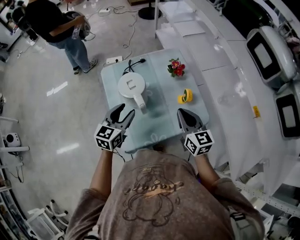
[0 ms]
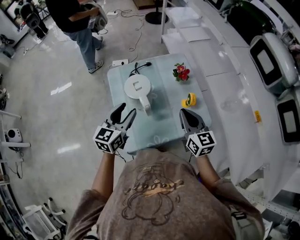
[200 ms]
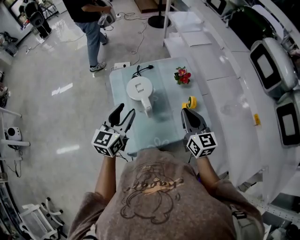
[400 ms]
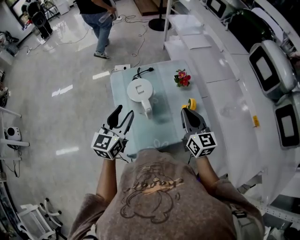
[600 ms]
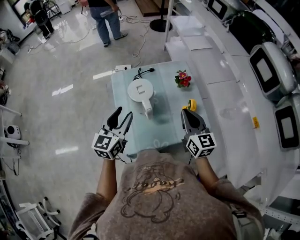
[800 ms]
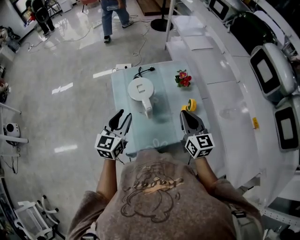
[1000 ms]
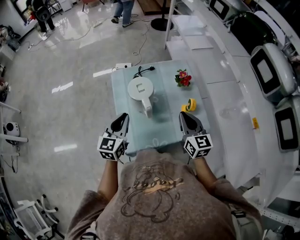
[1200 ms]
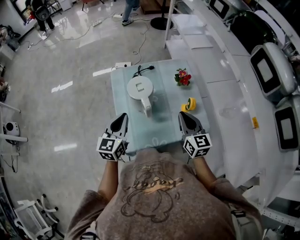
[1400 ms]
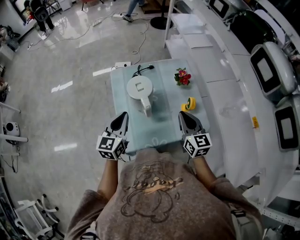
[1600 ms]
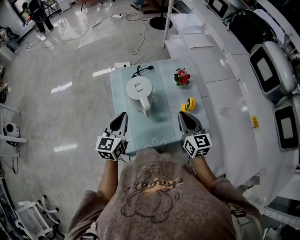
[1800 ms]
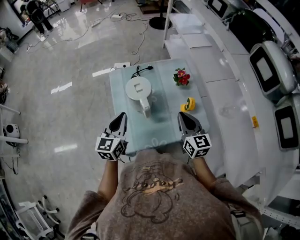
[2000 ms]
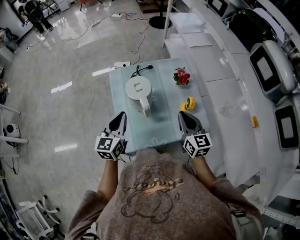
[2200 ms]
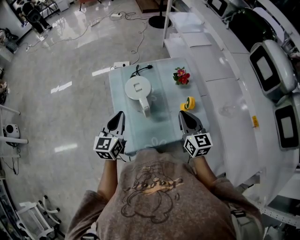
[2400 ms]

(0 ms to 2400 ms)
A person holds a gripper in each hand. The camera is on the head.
0 ms - 1200 ms: The left gripper reaches about 10 cm upward, then returns, and closes up.
1200 ms - 2400 ms: The grippers stay close to where they were, moving slightly.

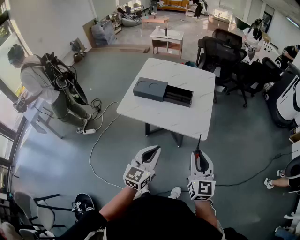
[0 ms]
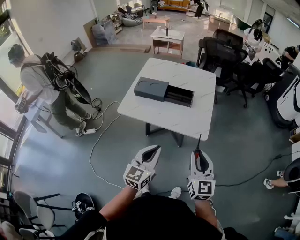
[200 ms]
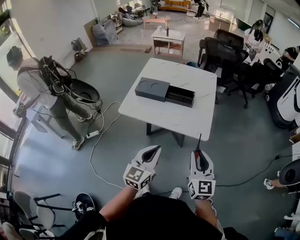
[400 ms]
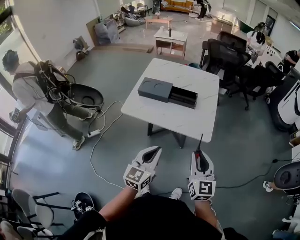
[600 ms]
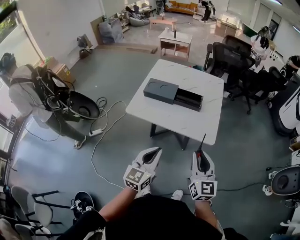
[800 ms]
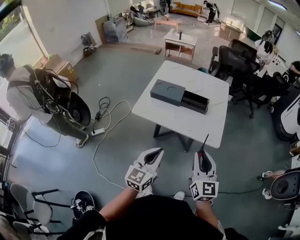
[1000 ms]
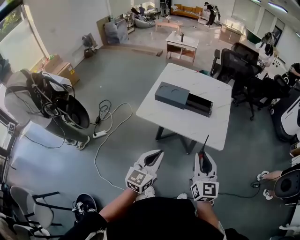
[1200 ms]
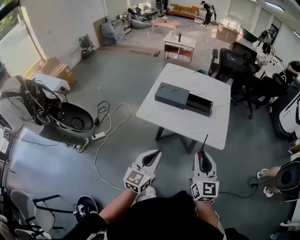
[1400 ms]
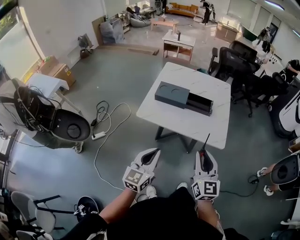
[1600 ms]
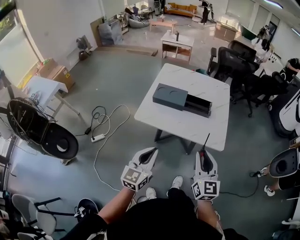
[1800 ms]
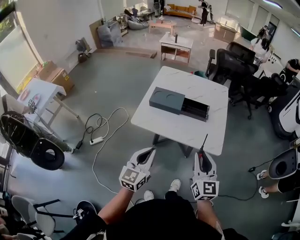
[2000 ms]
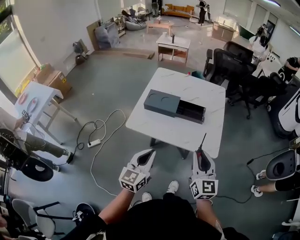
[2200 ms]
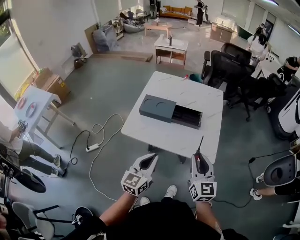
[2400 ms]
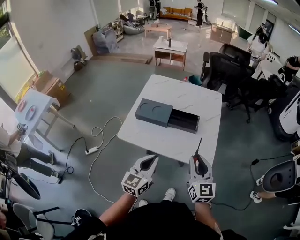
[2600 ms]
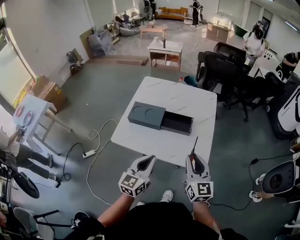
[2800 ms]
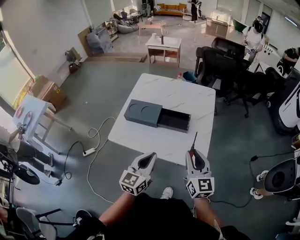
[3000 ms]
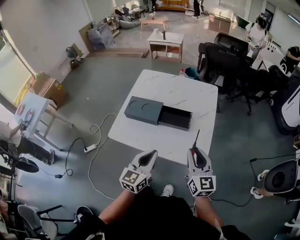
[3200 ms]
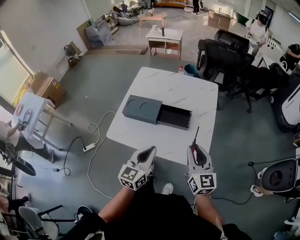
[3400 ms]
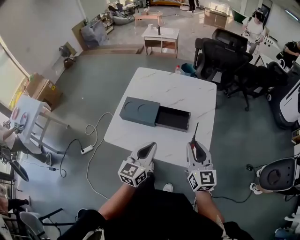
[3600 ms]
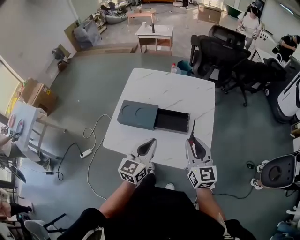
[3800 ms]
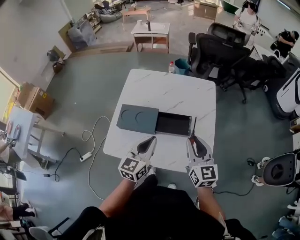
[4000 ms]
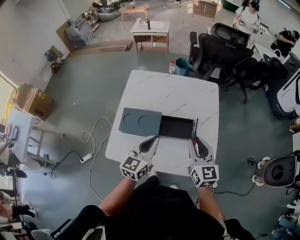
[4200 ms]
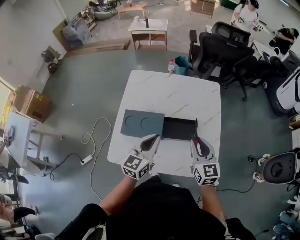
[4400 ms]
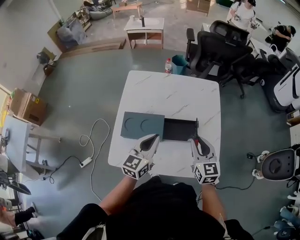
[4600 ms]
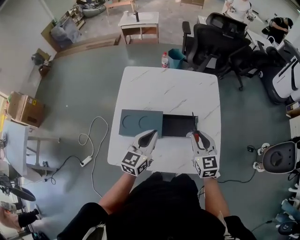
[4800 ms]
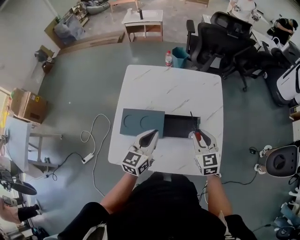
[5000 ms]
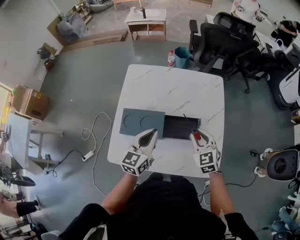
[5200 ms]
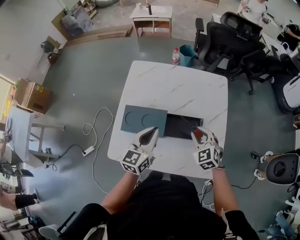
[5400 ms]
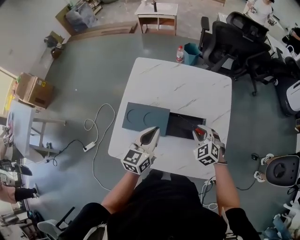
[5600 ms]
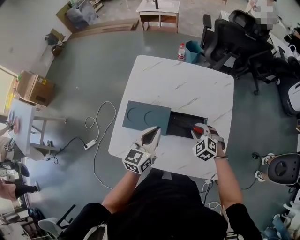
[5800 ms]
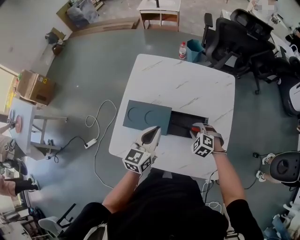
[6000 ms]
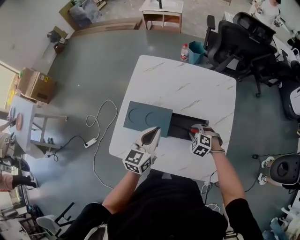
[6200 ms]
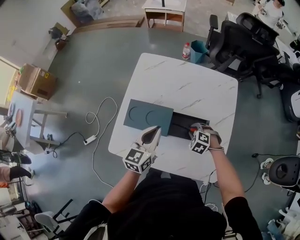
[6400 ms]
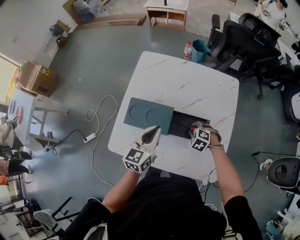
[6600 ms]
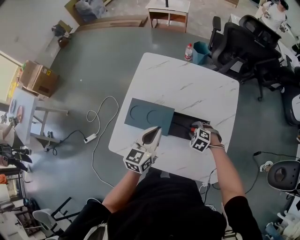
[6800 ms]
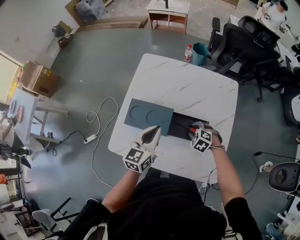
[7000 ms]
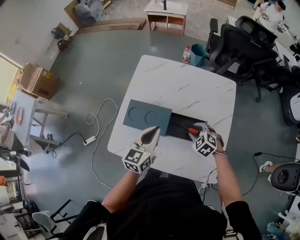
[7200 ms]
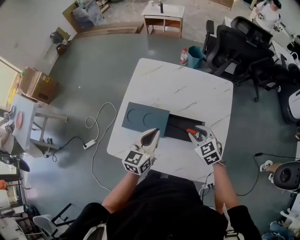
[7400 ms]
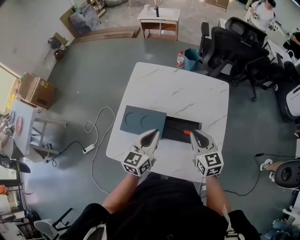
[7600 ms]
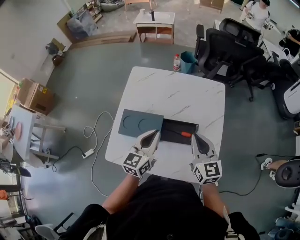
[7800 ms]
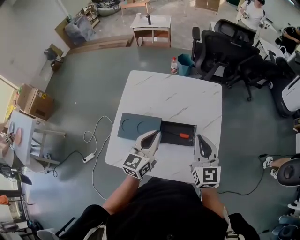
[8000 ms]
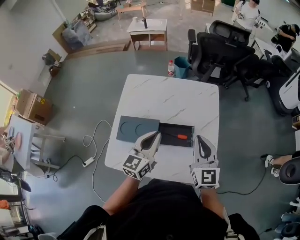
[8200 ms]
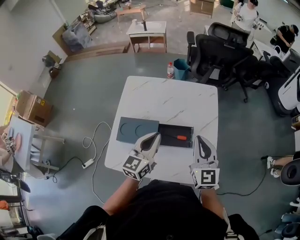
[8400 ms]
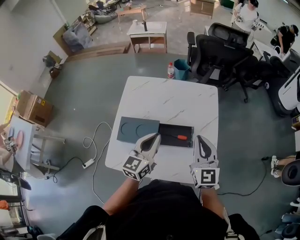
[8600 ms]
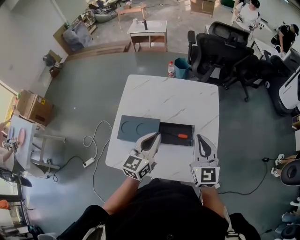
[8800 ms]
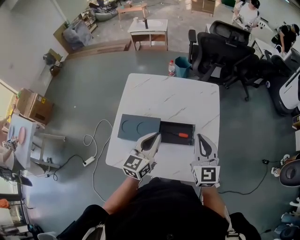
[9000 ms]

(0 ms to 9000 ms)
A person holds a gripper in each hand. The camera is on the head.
0 ms - 1600 ms: The grippers both shift to the left by roughly 15 cm.
1600 ms - 3000 ms: Both grippers travel together forward and to the right, about 25 cm.
3000 ms - 4400 ms: Both grippers move forward, about 20 cm.
4400 ms - 6000 ms: The right gripper is displaced downward by some 20 cm, and angles its fingers downward, by approximately 40 degrees, while the left gripper ends up roughly 5 cm from where it was.
6000 ms - 7600 ms: The right gripper travels upward by approximately 15 cm, and angles its fingers upward, by approximately 40 degrees.
7600 ms - 9000 ms: The left gripper ends up about 5 cm from where it was, while the right gripper travels upward by some 10 cm, and swivels roughly 30 degrees.

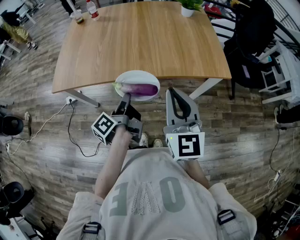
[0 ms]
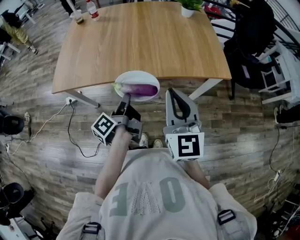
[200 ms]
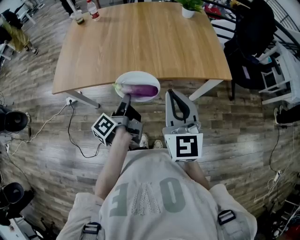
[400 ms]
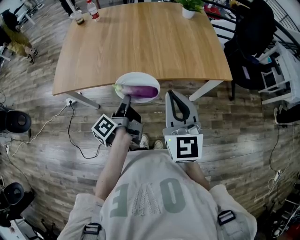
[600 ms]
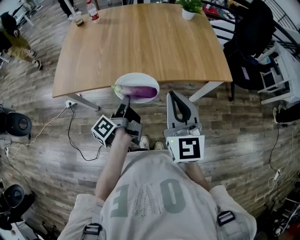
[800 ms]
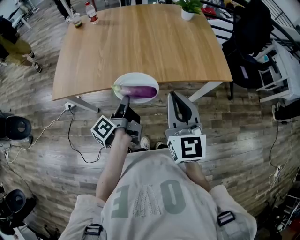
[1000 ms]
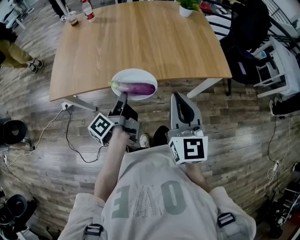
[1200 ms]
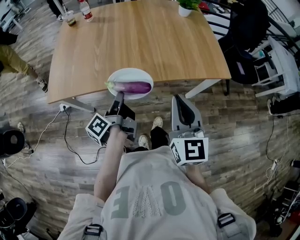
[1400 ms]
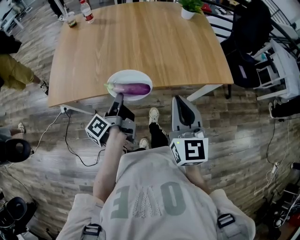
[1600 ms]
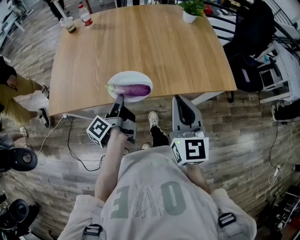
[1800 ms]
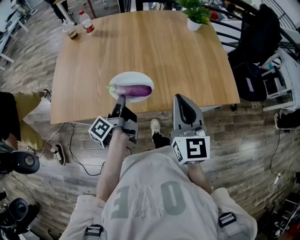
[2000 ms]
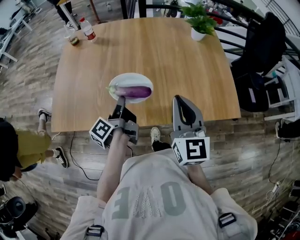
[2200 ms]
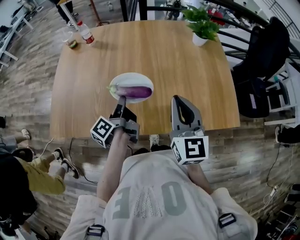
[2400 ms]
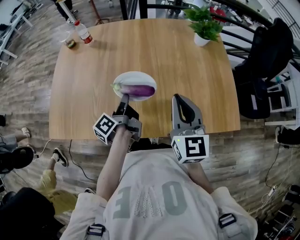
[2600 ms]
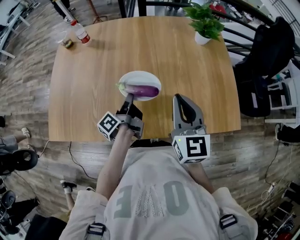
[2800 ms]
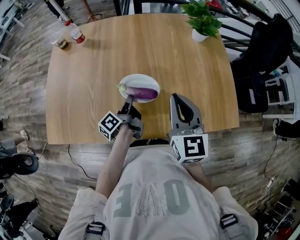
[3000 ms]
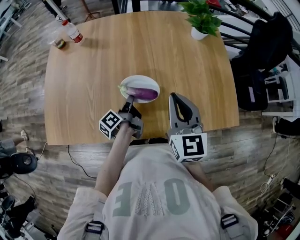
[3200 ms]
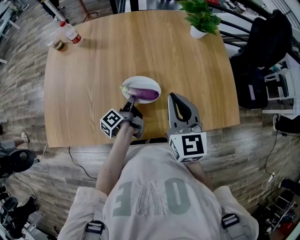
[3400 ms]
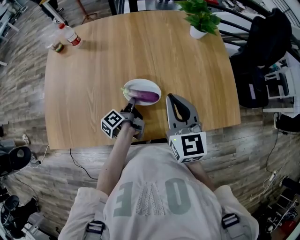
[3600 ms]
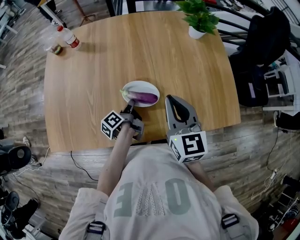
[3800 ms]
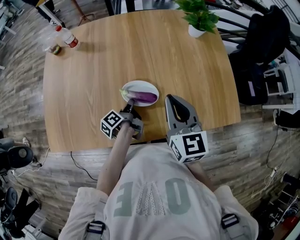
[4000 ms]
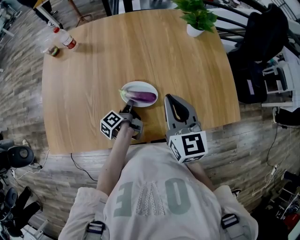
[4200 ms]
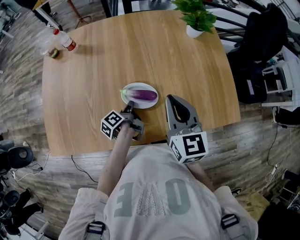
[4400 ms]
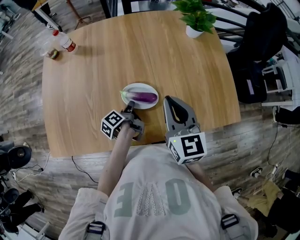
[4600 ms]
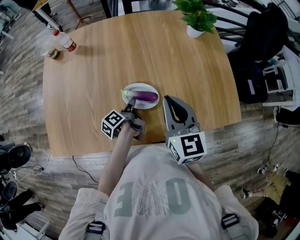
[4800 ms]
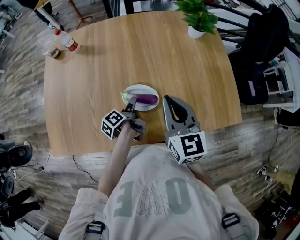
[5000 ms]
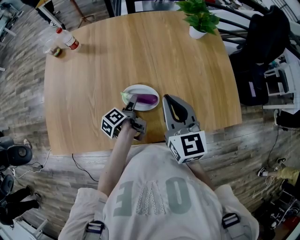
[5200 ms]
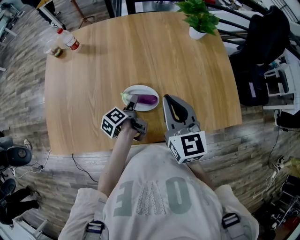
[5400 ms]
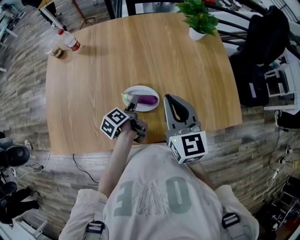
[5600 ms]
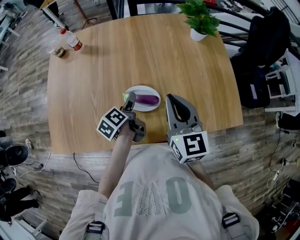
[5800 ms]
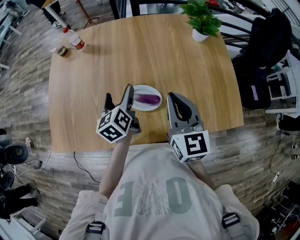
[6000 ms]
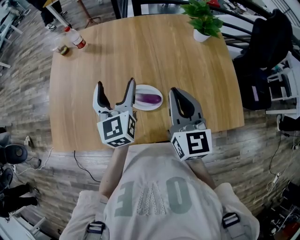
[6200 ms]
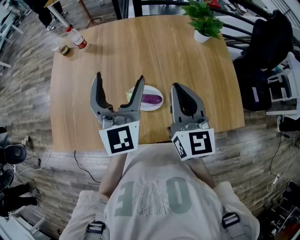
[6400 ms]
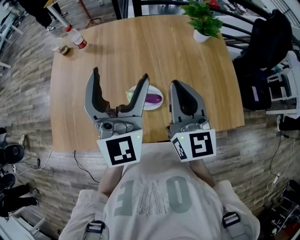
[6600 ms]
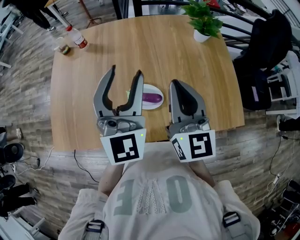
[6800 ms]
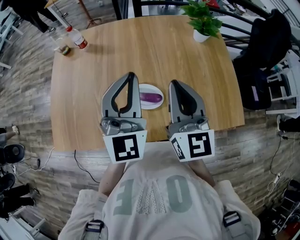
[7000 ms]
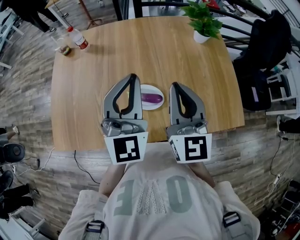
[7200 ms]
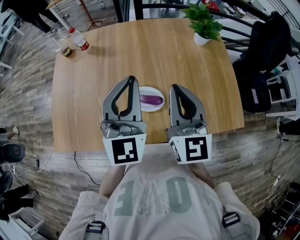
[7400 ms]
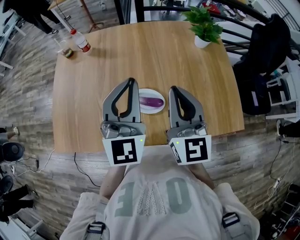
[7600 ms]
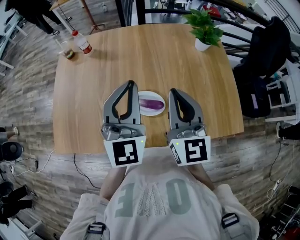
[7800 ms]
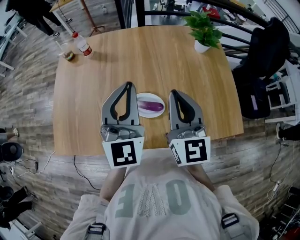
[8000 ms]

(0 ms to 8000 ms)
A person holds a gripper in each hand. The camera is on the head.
0 ms - 1600 ms: The right gripper ends up roughly 5 cm from where it was; the left gripper is displaced to the left and forward by approximately 10 cm.
1600 ms - 3200 ms: The grippers both shift forward by some 30 cm.
3200 ms - 4800 ms: The grippers move only a little.
4800 ms - 6400 ms: The right gripper moves upward, roughly 5 cm; the left gripper shifts roughly 35 cm upward, rolls clockwise, seen from behind, by roughly 90 degrees, and opens its fingers.
6400 ms - 8000 ms: The left gripper closes its fingers.

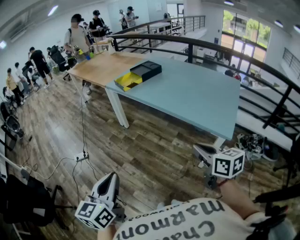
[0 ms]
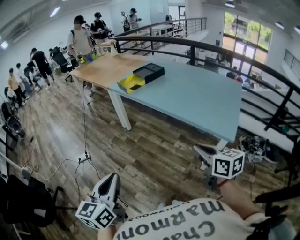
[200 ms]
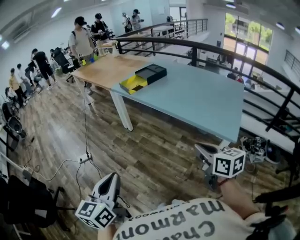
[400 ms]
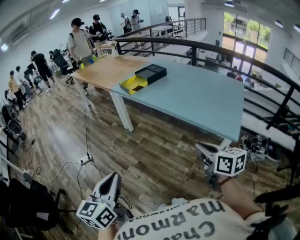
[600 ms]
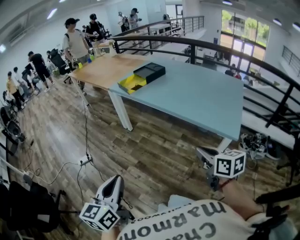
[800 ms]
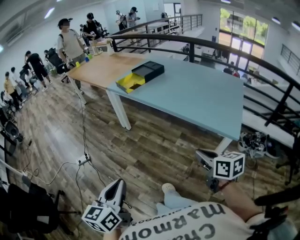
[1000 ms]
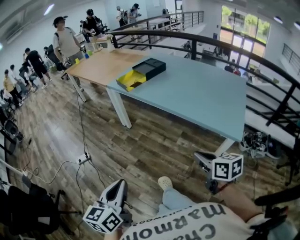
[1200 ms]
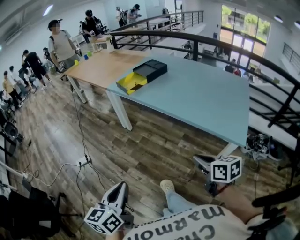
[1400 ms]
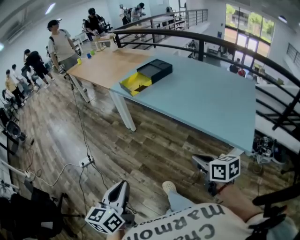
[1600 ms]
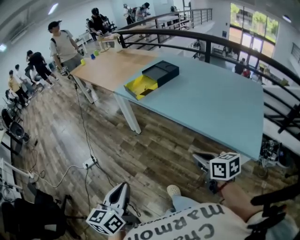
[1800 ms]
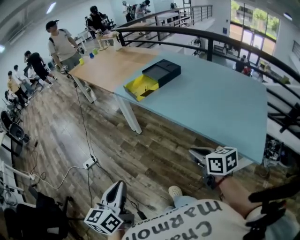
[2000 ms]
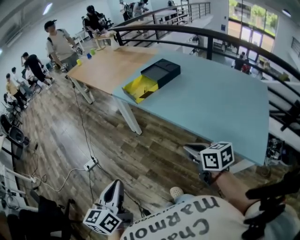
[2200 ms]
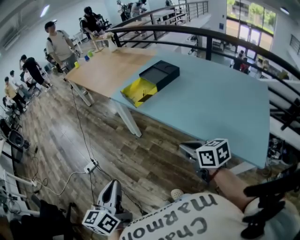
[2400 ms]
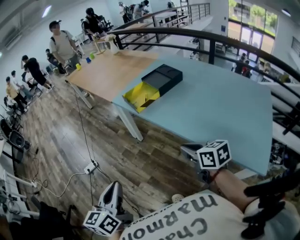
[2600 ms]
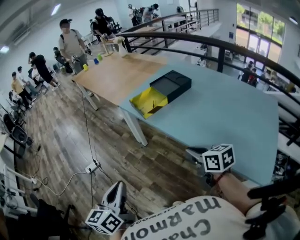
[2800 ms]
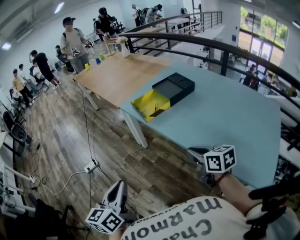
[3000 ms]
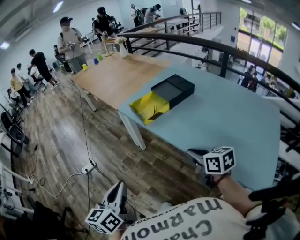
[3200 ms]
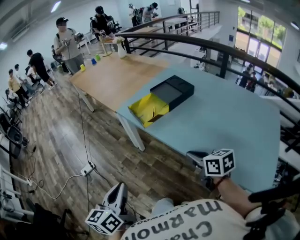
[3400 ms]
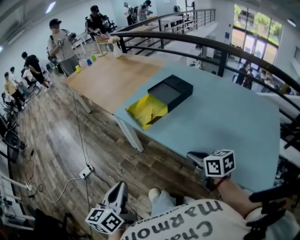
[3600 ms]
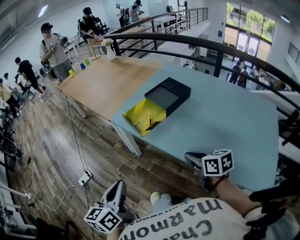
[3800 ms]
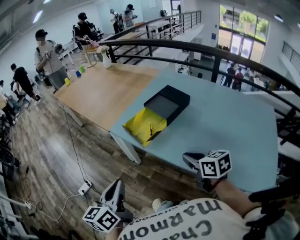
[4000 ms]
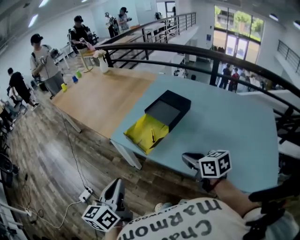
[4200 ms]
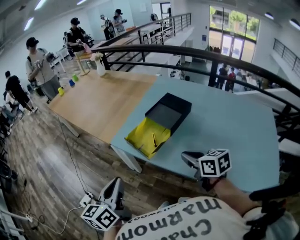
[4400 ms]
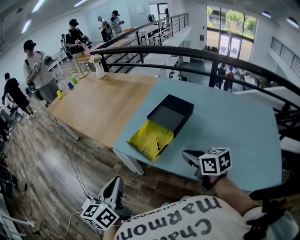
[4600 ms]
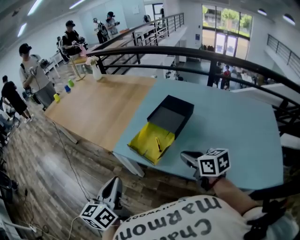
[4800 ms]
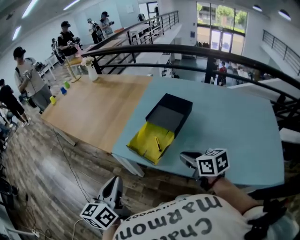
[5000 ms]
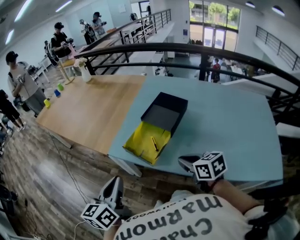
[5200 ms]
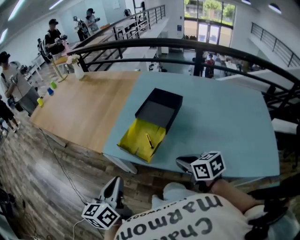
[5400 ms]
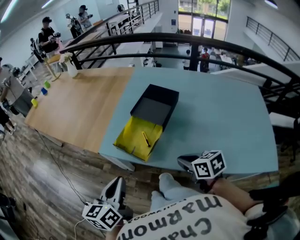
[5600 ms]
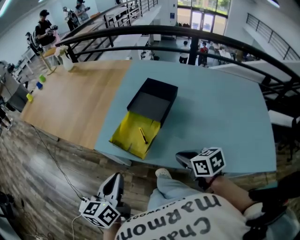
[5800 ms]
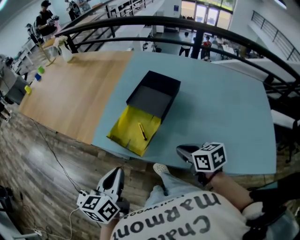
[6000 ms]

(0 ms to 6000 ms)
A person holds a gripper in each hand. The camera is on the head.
0 ms - 1600 ms: The left gripper shifts some 15 cm forward and downward. The right gripper shifts roughly 15 cm forward, downward and to the left.
1600 ms - 3000 ms: Both grippers travel together forward, some 25 cm.
3000 ms - 4400 ms: Both grippers move forward, roughly 20 cm.
4400 ms - 6000 ms: The right gripper moves downward, about 10 cm; the left gripper shifts about 10 cm forward and downward.
